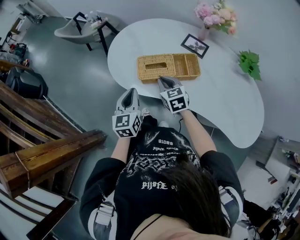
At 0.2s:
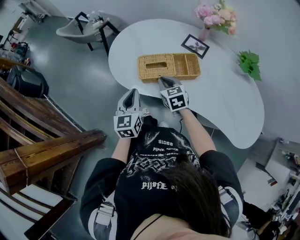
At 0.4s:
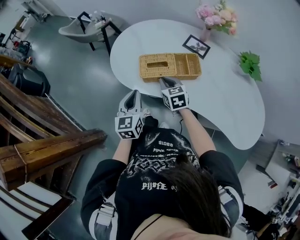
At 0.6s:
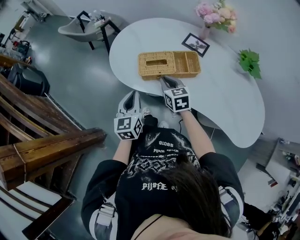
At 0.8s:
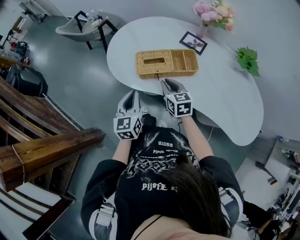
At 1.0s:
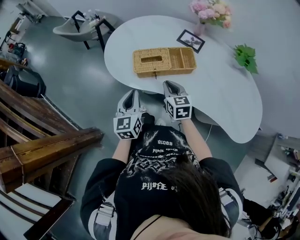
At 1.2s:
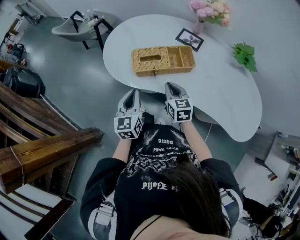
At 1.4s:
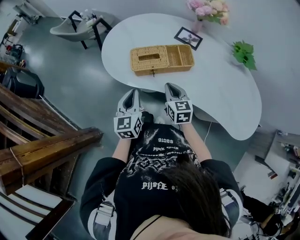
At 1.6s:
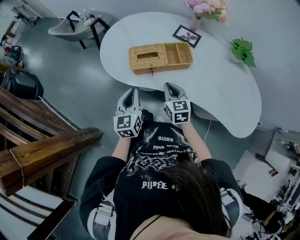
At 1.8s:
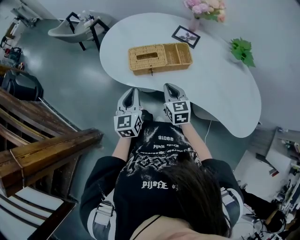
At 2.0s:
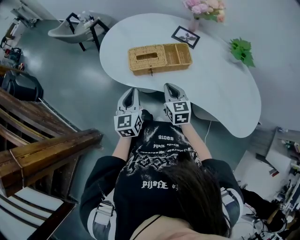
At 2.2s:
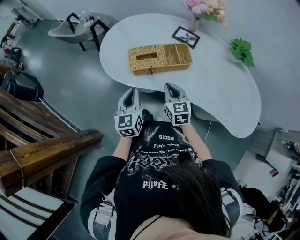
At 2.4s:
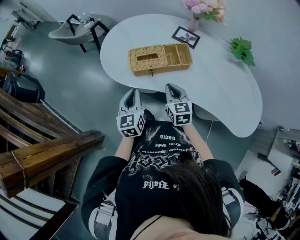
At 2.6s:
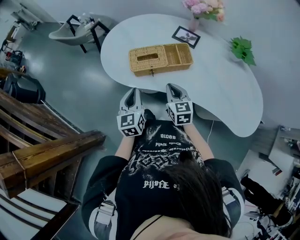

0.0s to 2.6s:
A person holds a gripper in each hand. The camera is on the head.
0.0s to 1.2s: The left gripper travels backward by approximately 5 cm. Meanwhile the right gripper travels backward and to the right by some 10 cm.
1.2s to 2.6s: The grippers move only a little.

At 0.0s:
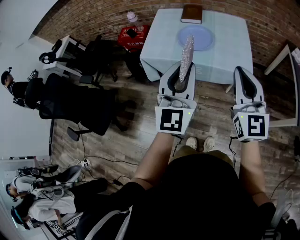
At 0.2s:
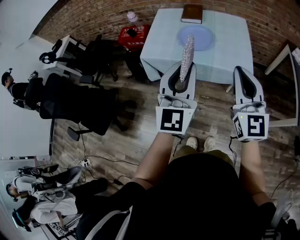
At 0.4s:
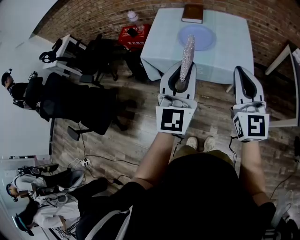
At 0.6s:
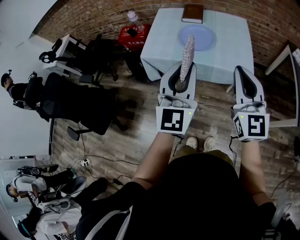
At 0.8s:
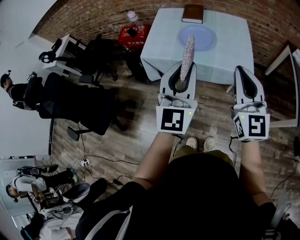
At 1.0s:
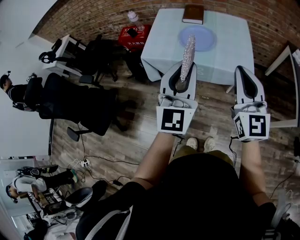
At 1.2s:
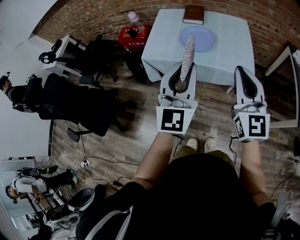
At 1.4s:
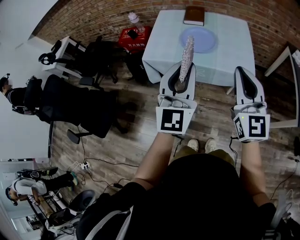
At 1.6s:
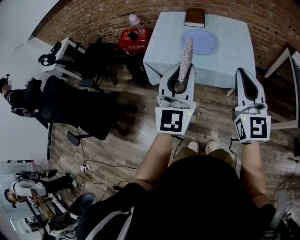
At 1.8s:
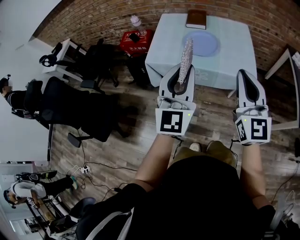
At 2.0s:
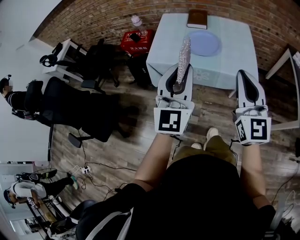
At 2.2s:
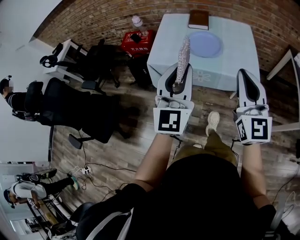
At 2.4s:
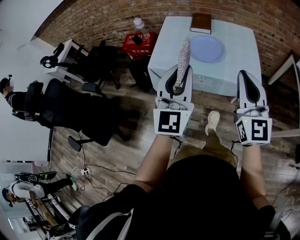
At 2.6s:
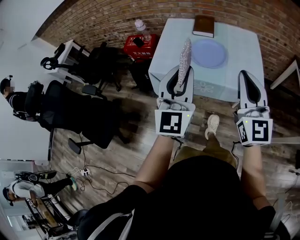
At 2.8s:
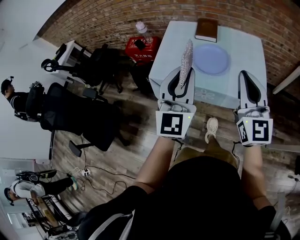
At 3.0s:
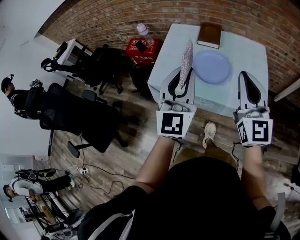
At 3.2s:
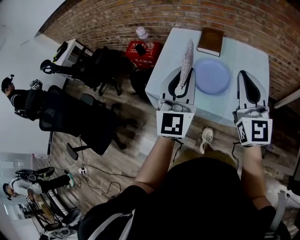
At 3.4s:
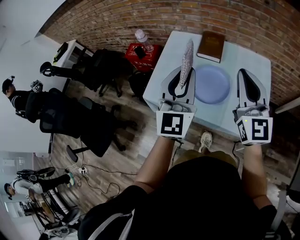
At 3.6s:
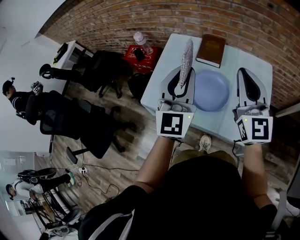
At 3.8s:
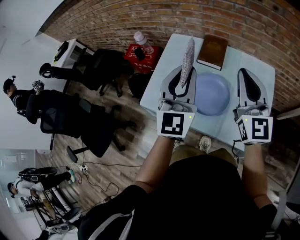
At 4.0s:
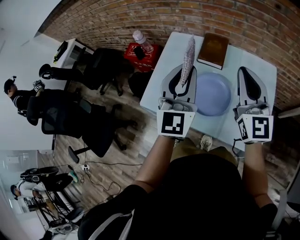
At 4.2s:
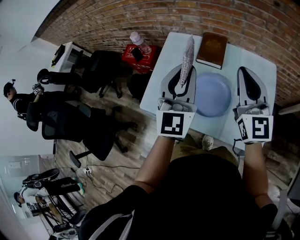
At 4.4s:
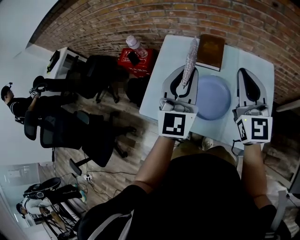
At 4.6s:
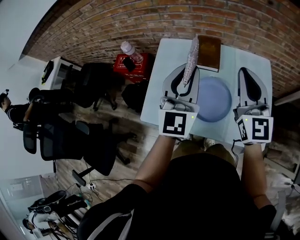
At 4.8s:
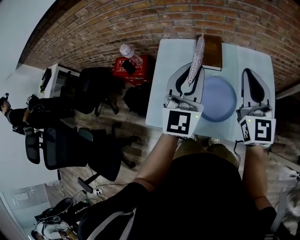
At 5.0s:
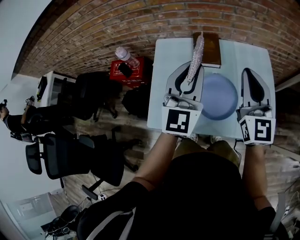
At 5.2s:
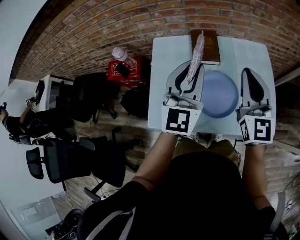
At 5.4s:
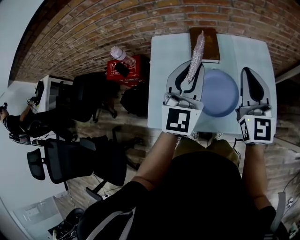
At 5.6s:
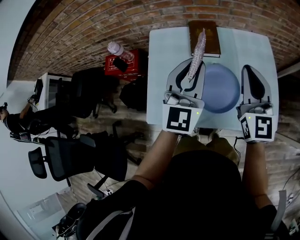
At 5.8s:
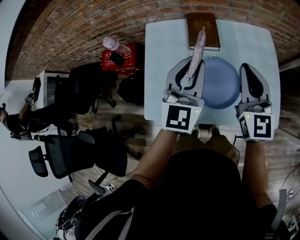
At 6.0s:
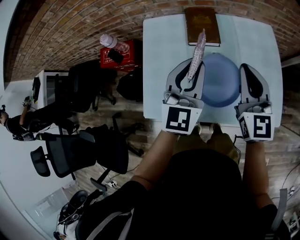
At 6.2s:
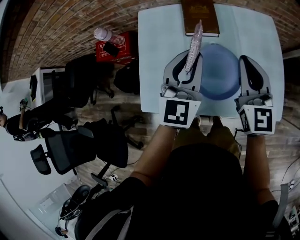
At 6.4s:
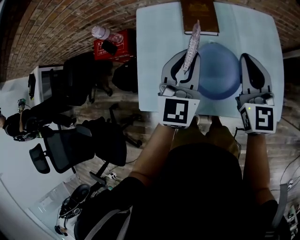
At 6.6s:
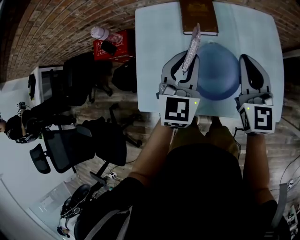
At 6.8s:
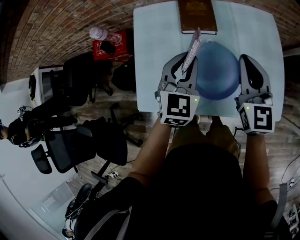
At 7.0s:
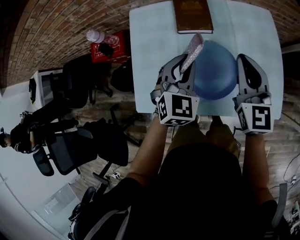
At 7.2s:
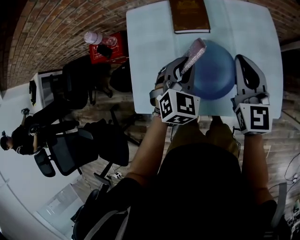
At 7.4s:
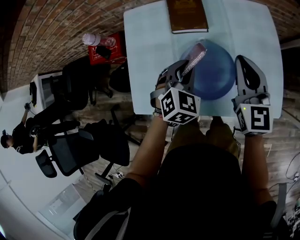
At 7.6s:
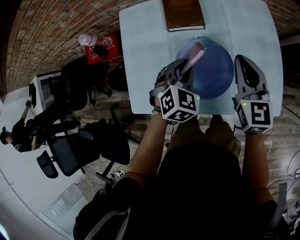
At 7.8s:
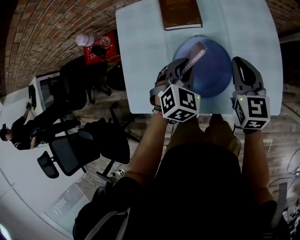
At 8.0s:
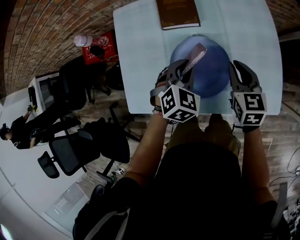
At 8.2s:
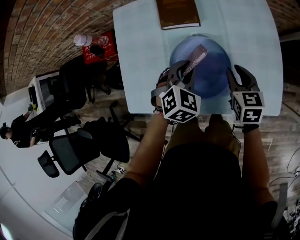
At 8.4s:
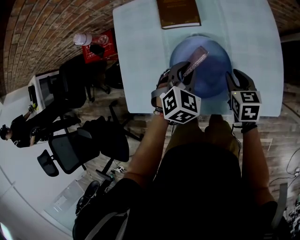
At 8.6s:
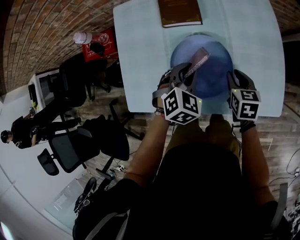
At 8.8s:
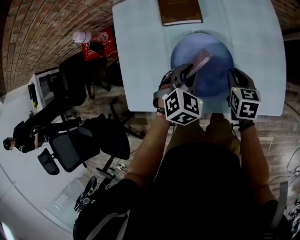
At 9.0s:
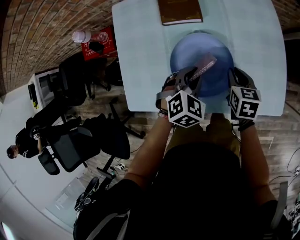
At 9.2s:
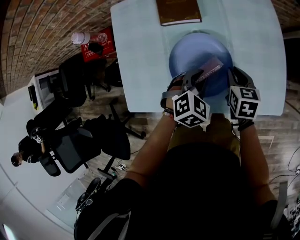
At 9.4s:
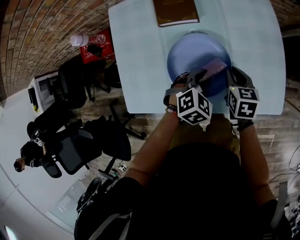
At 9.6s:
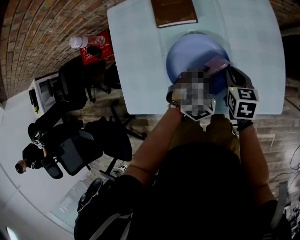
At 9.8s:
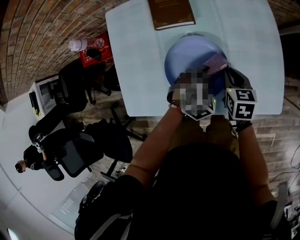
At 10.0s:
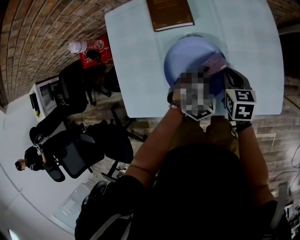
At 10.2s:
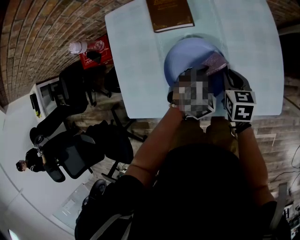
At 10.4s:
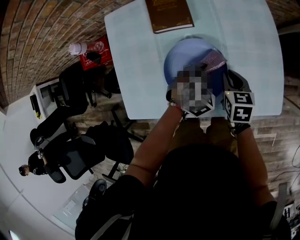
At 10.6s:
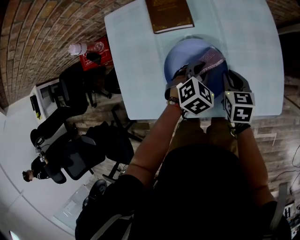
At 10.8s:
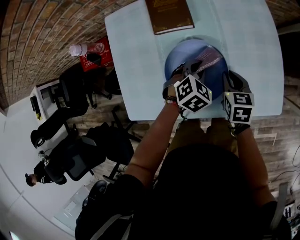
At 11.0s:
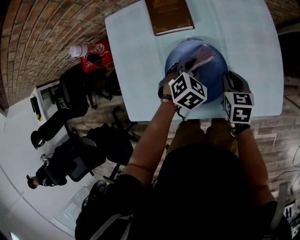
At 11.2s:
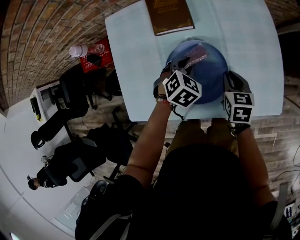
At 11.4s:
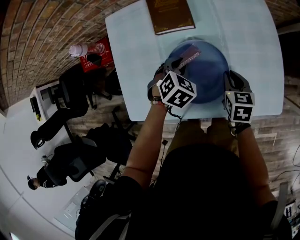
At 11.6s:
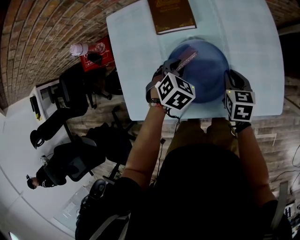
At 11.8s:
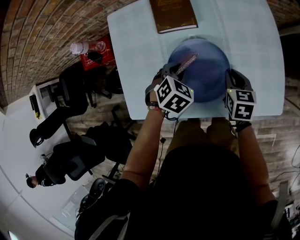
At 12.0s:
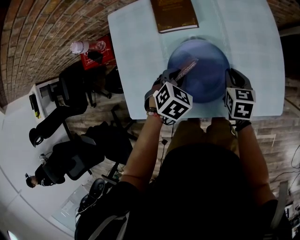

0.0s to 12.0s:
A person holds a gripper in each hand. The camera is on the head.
0.0s to 1.6s: There are only small adjustments of the grippers.
1.6s to 3.0s: The grippers both shift forward by approximately 20 cm.
3.0s to 4.4s: Both grippers move forward, some 25 cm.
4.4s to 6.0s: The left gripper travels downward and forward by some 10 cm, and rotates approximately 20 degrees. Meanwhile the right gripper moves downward, roughly 10 cm.
6.0s to 7.6s: The left gripper goes some 20 cm downward, and tips its fingers downward by some 40 degrees. The right gripper moves downward and to the right, some 10 cm.
7.6s to 9.0s: The right gripper heads downward, covering some 20 cm, and tilts its fingers about 30 degrees downward; the left gripper is displaced downward by approximately 5 cm.
9.0s to 10.4s: The left gripper is displaced to the right by some 5 cm.
10.4s to 12.0s: The left gripper moves to the left, approximately 10 cm.

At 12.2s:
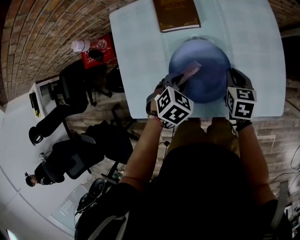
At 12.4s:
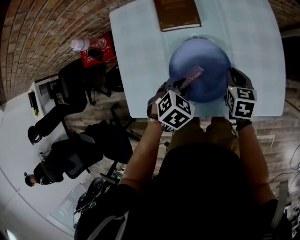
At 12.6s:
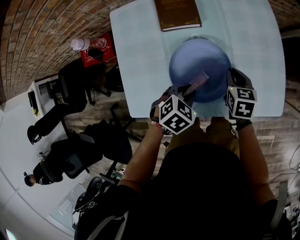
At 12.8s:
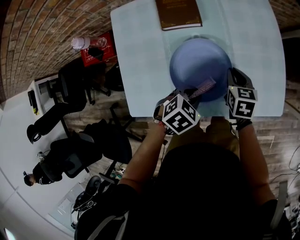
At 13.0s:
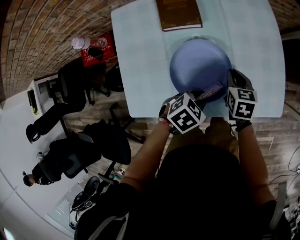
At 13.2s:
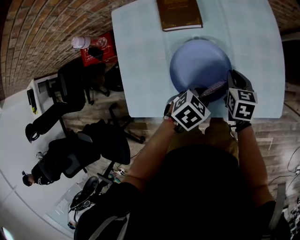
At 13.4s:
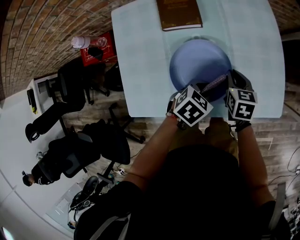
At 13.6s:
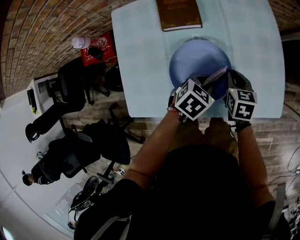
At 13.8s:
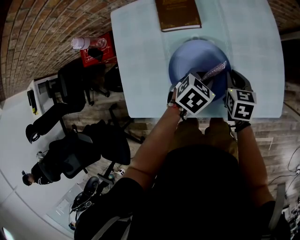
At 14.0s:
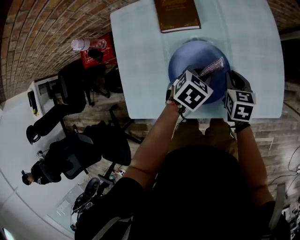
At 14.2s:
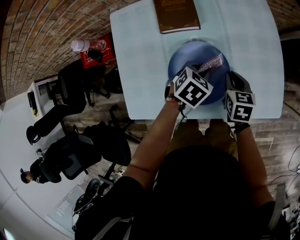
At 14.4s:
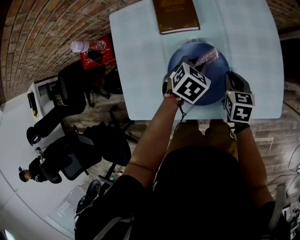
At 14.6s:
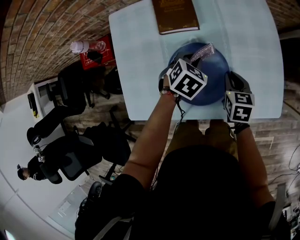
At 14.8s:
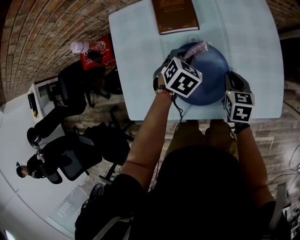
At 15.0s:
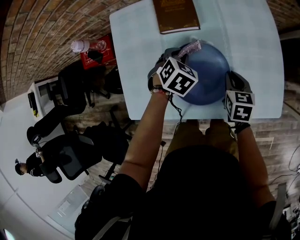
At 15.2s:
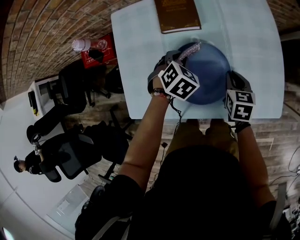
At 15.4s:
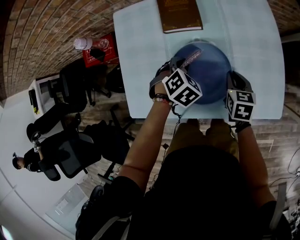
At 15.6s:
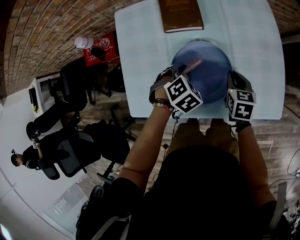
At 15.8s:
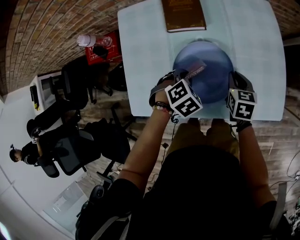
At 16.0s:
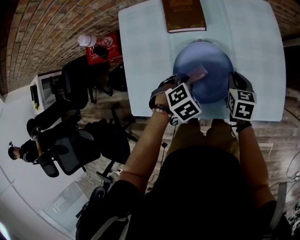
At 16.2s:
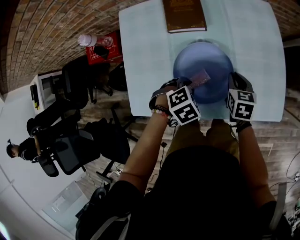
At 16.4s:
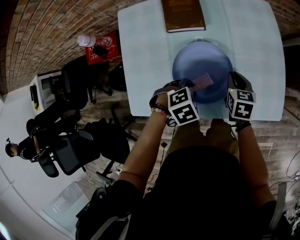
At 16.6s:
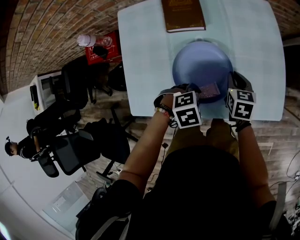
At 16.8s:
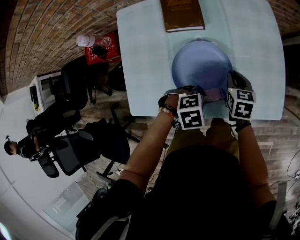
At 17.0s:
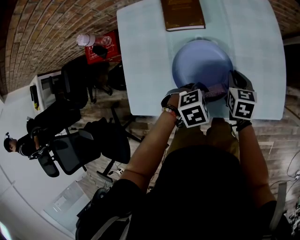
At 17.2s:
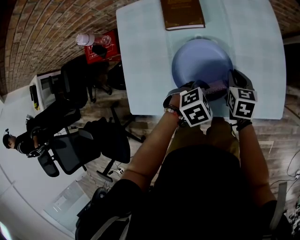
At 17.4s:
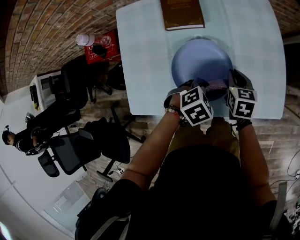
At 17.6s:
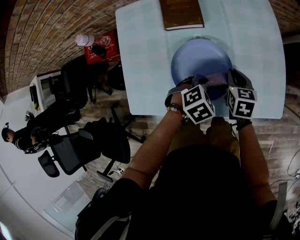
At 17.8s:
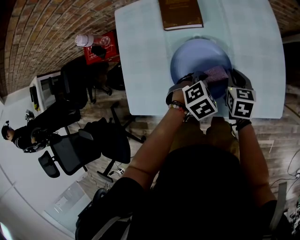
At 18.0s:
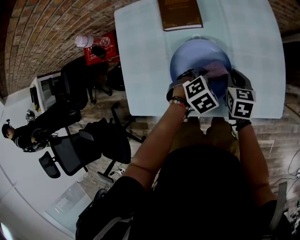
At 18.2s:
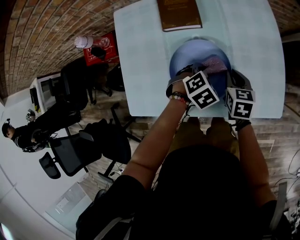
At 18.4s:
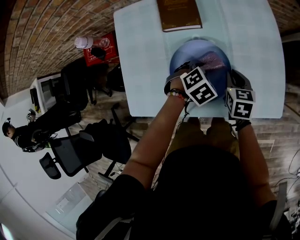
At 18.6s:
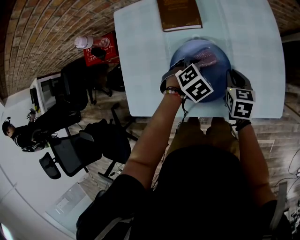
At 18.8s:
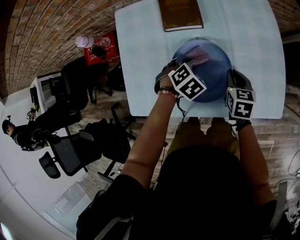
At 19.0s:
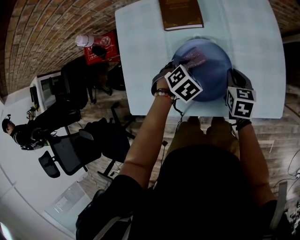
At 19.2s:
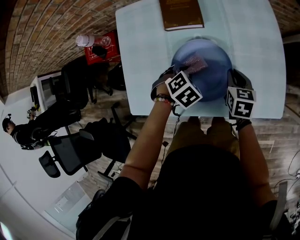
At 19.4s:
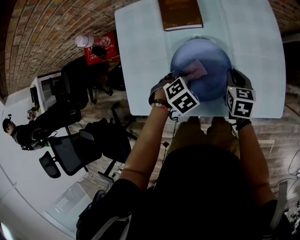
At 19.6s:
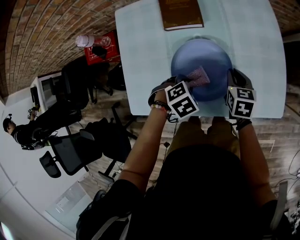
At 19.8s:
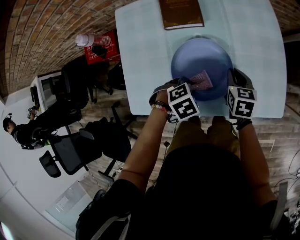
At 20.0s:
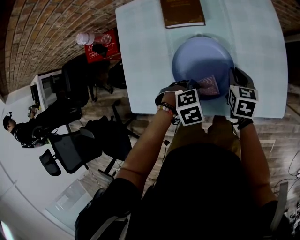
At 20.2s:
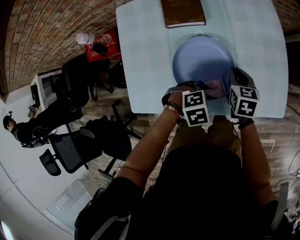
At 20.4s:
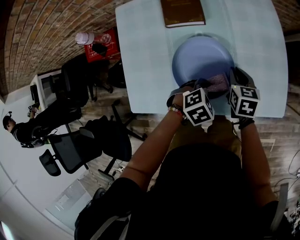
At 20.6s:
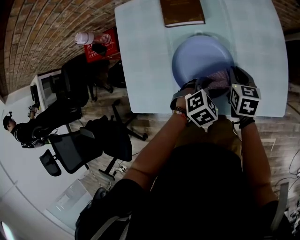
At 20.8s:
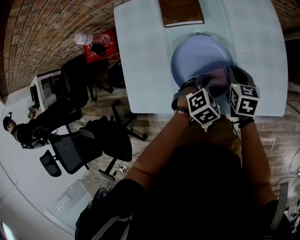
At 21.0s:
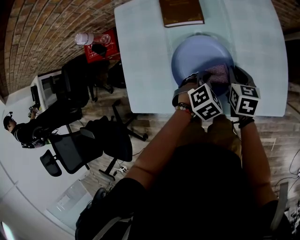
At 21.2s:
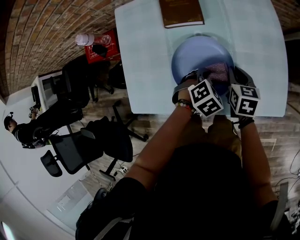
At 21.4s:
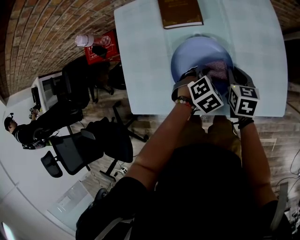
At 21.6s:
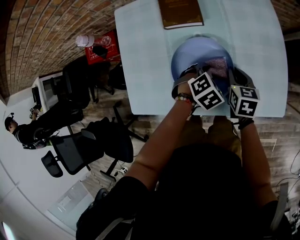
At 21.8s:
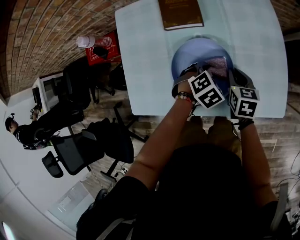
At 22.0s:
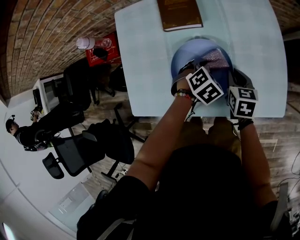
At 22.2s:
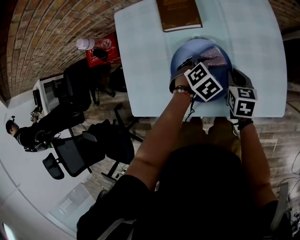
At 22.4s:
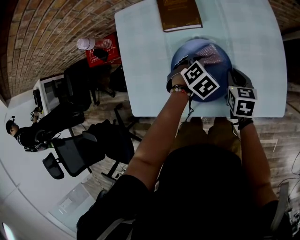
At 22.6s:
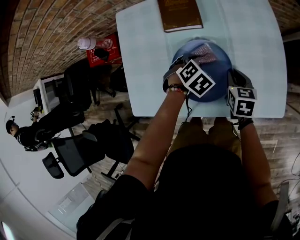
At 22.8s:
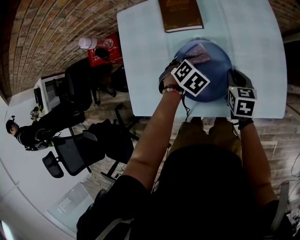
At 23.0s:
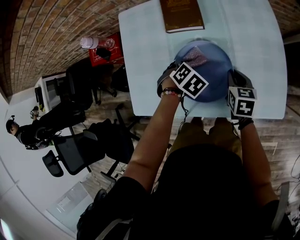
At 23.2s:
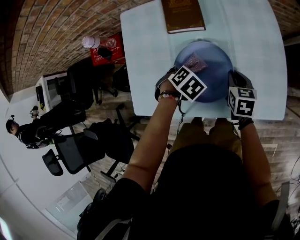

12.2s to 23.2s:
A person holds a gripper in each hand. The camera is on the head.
12.2s to 13.8s: The left gripper goes some 10 cm to the right.
13.8s to 15.4s: The left gripper changes place by roughly 10 cm, and changes its angle by some 30 degrees.
15.4s to 17.0s: The left gripper changes place by about 15 cm, and rotates approximately 30 degrees.
17.0s to 18.4s: The left gripper ends up roughly 10 cm from where it was, and swivels about 20 degrees.
18.4s to 20.0s: The left gripper changes place by approximately 10 cm.
20.0s to 21.6s: The left gripper ends up roughly 10 cm from where it was, and swivels some 20 degrees.
21.6s to 23.2s: The left gripper shifts by roughly 10 cm.
